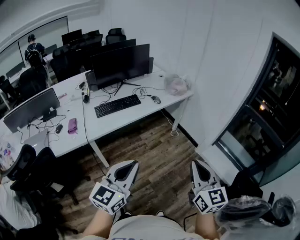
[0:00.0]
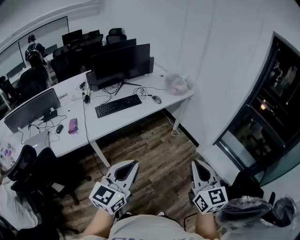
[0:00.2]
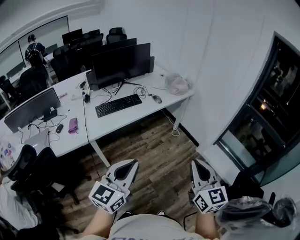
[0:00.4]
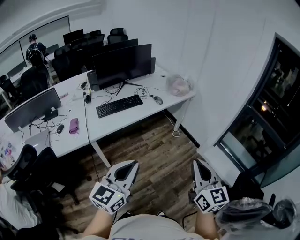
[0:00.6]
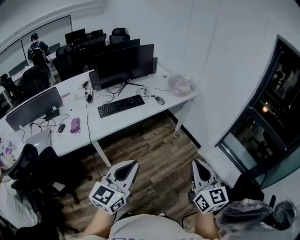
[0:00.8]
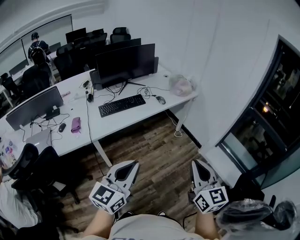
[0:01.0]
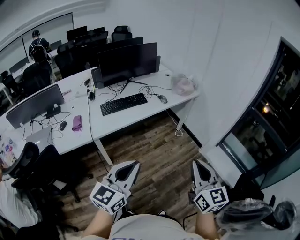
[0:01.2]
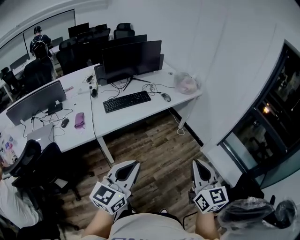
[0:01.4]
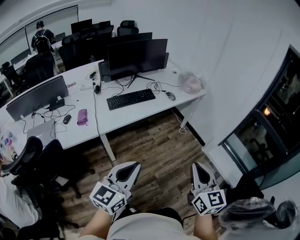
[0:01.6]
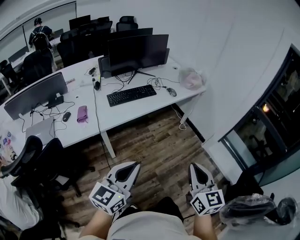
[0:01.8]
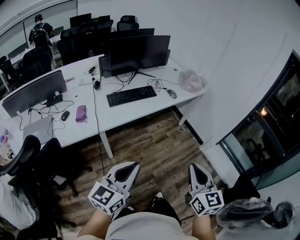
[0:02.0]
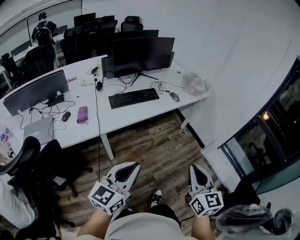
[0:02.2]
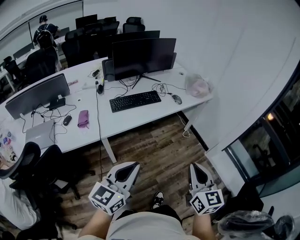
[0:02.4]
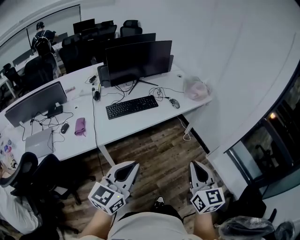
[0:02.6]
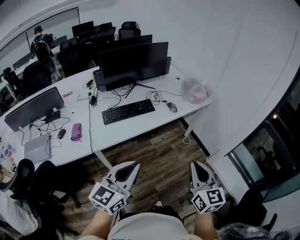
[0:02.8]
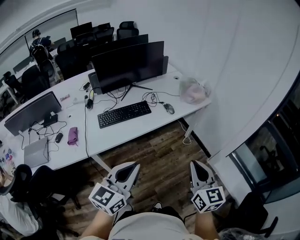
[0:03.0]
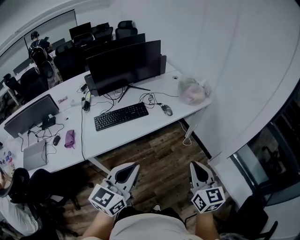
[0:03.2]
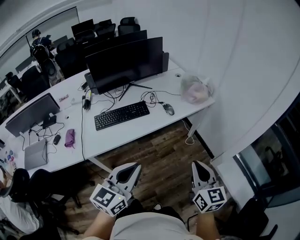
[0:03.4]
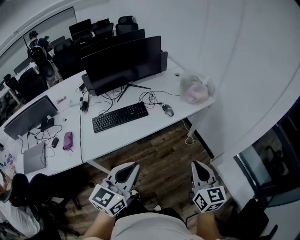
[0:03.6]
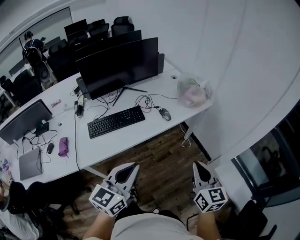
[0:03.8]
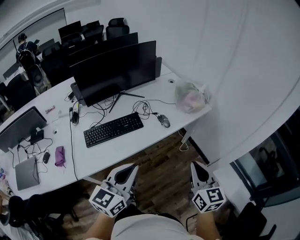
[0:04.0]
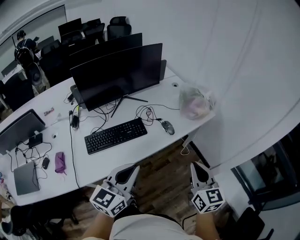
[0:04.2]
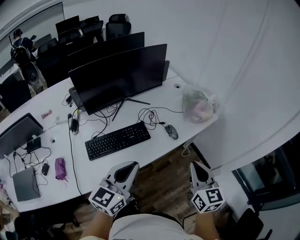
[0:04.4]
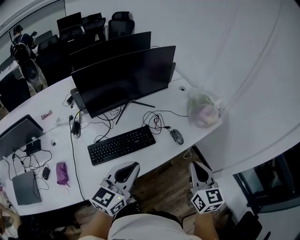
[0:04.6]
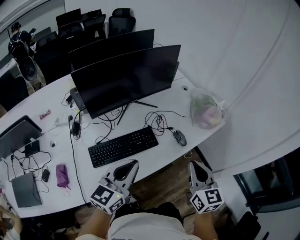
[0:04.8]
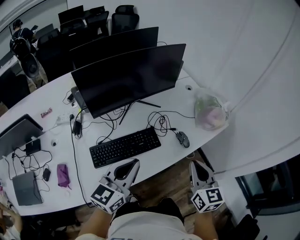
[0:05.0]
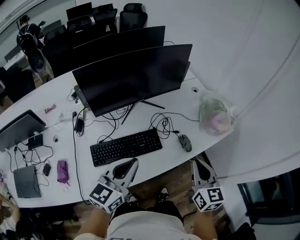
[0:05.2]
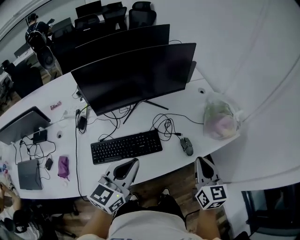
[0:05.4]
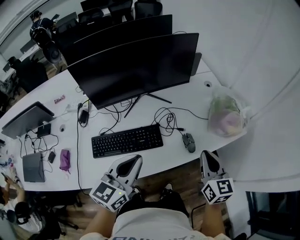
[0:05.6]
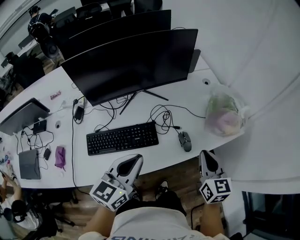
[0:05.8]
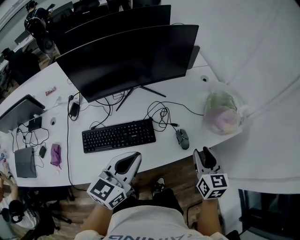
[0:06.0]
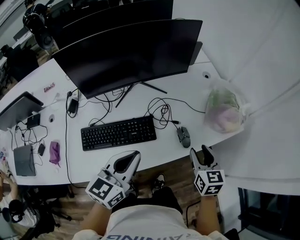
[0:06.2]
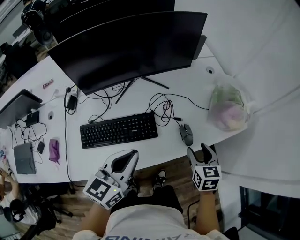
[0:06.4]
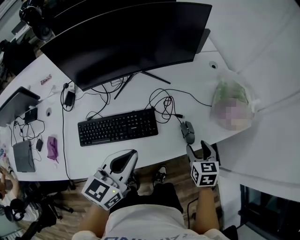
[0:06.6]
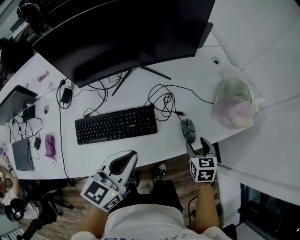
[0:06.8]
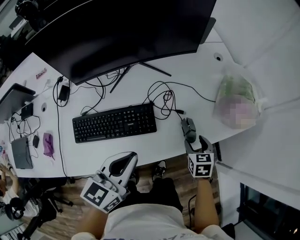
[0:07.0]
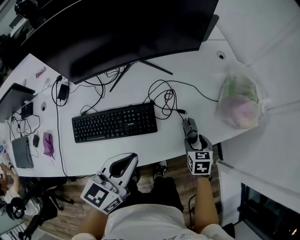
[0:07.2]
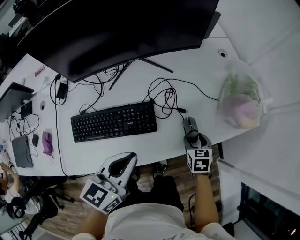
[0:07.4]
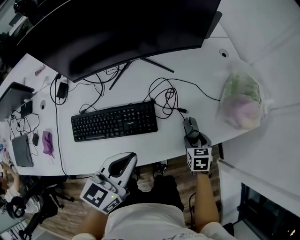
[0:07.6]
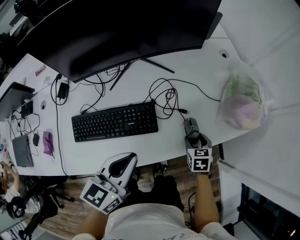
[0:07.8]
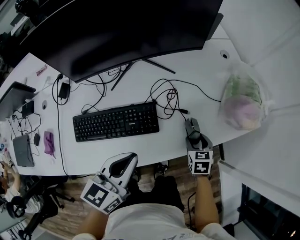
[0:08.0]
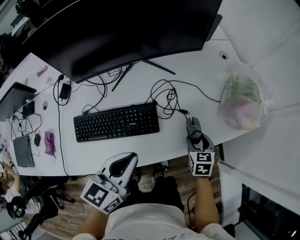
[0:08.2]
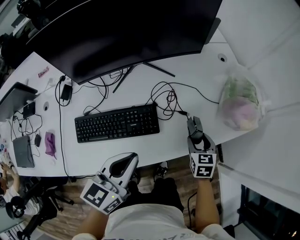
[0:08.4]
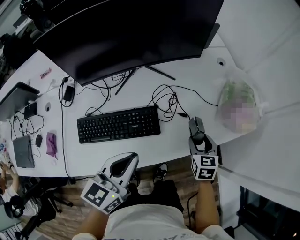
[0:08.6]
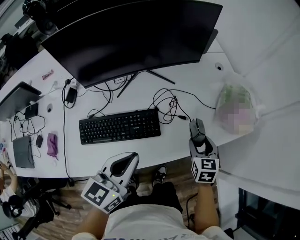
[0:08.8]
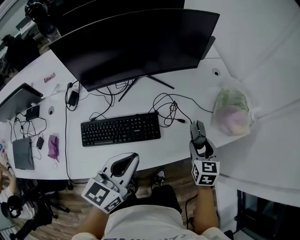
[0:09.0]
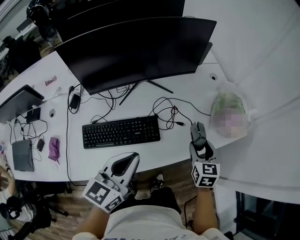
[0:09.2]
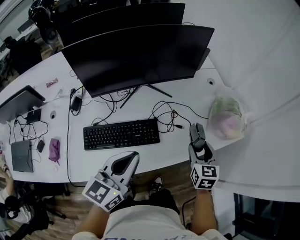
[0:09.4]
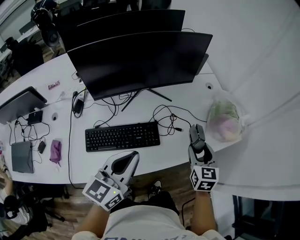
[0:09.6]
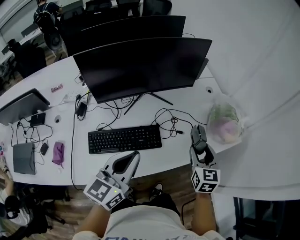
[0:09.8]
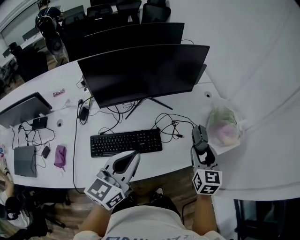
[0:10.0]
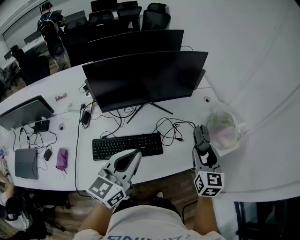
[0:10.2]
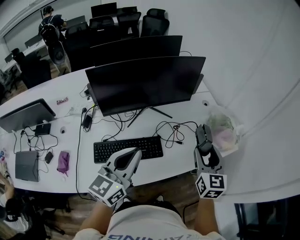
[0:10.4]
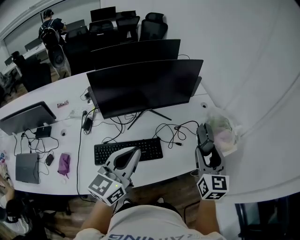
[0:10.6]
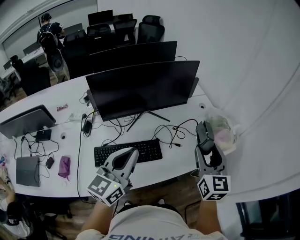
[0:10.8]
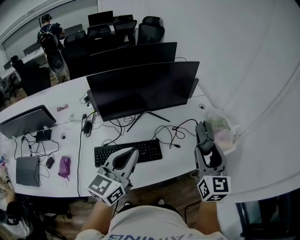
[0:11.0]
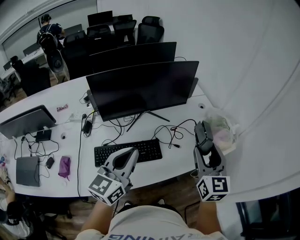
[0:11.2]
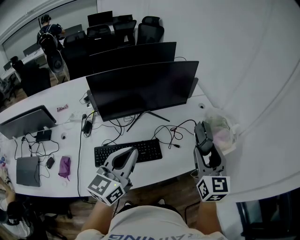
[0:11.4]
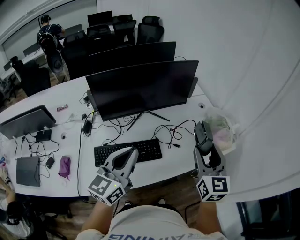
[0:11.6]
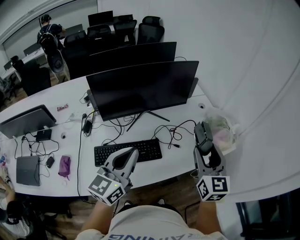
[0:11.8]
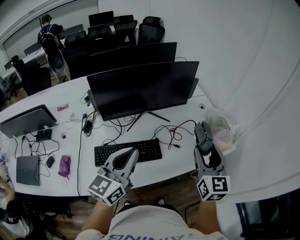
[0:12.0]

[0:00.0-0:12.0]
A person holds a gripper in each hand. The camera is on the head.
0:00.0 to 0:01.6: Both grippers travel together to the left, approximately 10 cm.
0:01.6 to 0:03.0: The two grippers go about 20 cm forward.
0:03.0 to 0:04.4: The two grippers go roughly 25 cm forward.
0:04.4 to 0:06.0: The left gripper moves forward, some 15 cm, while the right gripper is displaced forward and downward by about 25 cm, and opens up.
0:06.0 to 0:07.6: The left gripper shifts approximately 10 cm downward. The right gripper heads downward, covering roughly 25 cm, angles its fingers downward, by approximately 30 degrees, and opens its fingers.
0:07.6 to 0:09.0: The right gripper goes about 15 cm upward, and changes its angle by about 20 degrees; the left gripper travels upward by roughly 5 cm.
0:09.0 to 0:10.4: The right gripper heads upward, covering roughly 20 cm, and changes its angle by about 20 degrees. The left gripper shifts some 10 cm upward.
0:10.4 to 0:12.0: The right gripper moves upward, approximately 5 cm.

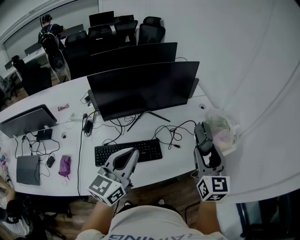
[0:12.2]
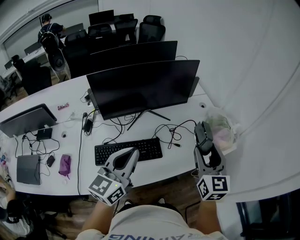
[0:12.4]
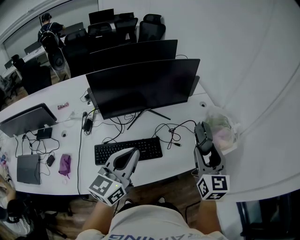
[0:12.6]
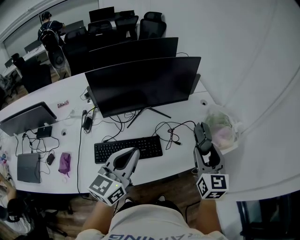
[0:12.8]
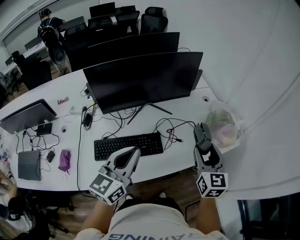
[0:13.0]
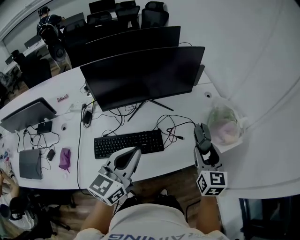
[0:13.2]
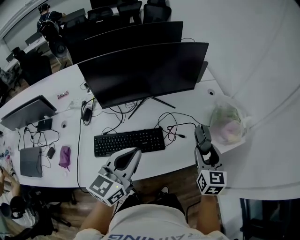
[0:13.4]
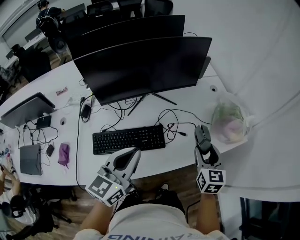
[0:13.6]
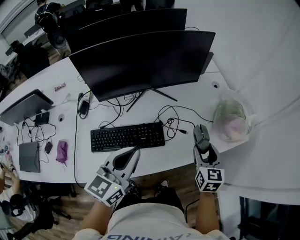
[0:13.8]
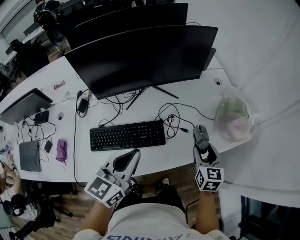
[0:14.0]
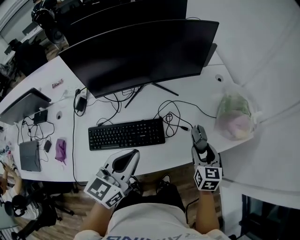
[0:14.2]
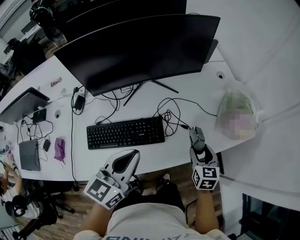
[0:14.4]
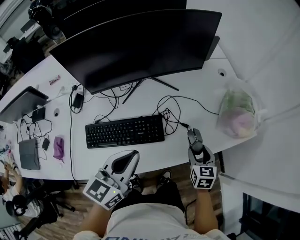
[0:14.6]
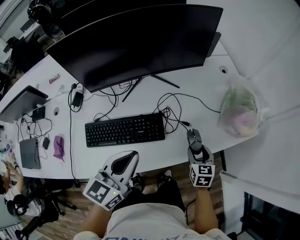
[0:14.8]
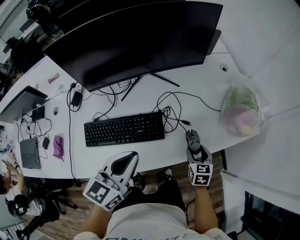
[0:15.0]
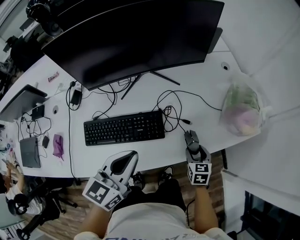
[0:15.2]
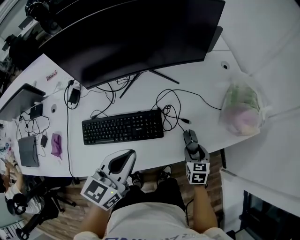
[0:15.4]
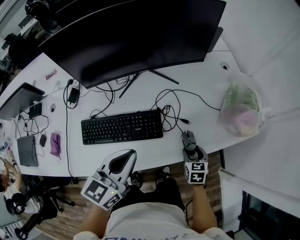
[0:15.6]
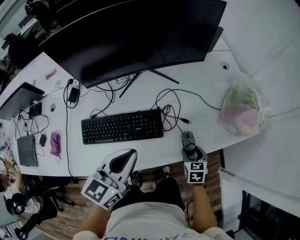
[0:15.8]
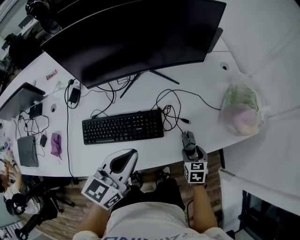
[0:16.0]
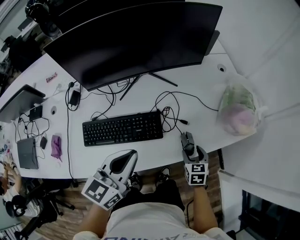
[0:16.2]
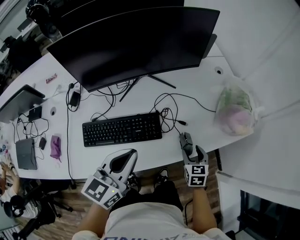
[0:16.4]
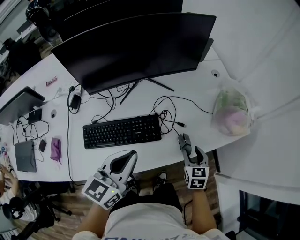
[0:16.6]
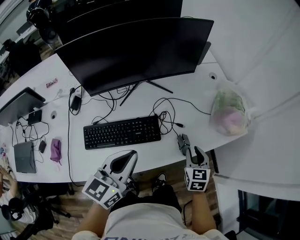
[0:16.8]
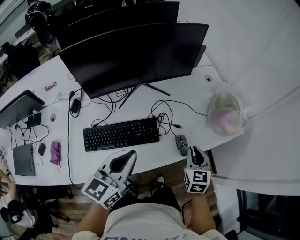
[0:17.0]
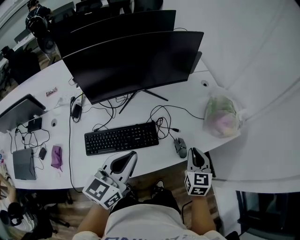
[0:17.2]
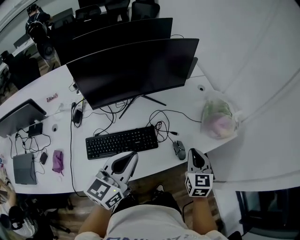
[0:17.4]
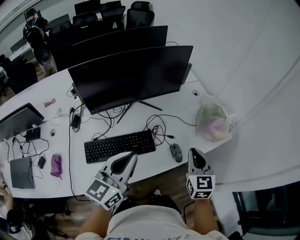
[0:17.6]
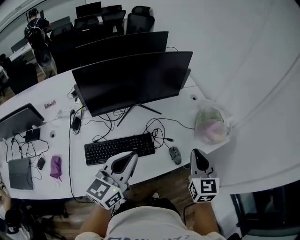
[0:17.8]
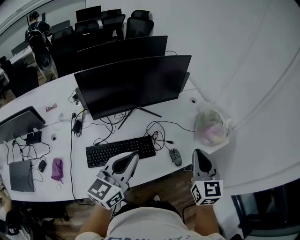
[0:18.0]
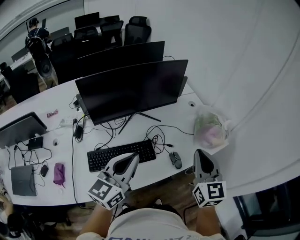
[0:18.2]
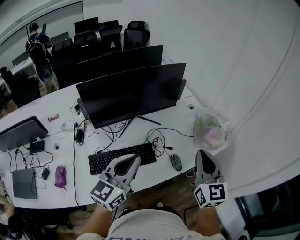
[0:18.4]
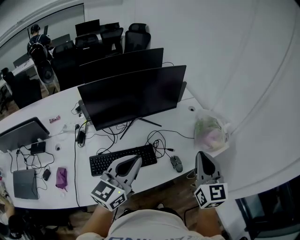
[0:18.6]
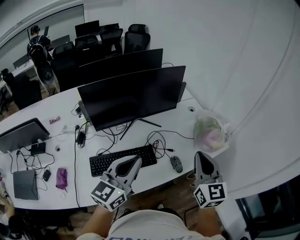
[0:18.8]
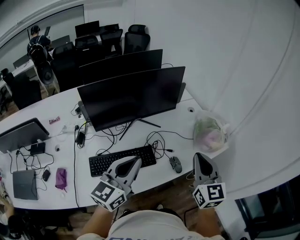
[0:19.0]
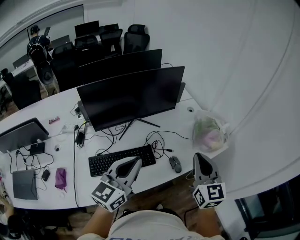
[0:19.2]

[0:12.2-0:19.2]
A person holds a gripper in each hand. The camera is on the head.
0:12.2 to 0:13.6: The right gripper goes roughly 15 cm downward. Meanwhile the left gripper shifts about 5 cm downward.
0:13.6 to 0:15.0: The right gripper is displaced downward by about 20 cm, and changes its angle by roughly 20 degrees. The left gripper travels downward by roughly 10 cm.
0:15.0 to 0:16.4: The grippers stay close to where they were, moving slightly.
0:16.4 to 0:17.8: The left gripper travels upward by about 10 cm, while the right gripper travels upward by approximately 30 cm, swivels about 30 degrees, and closes up.
0:17.8 to 0:19.2: The right gripper moves upward, some 5 cm.

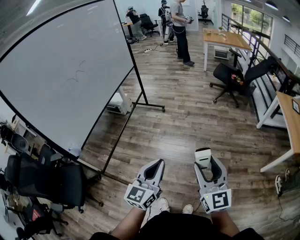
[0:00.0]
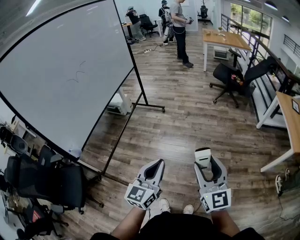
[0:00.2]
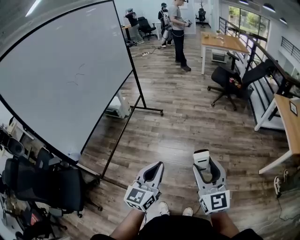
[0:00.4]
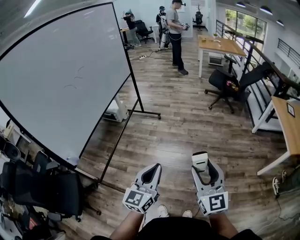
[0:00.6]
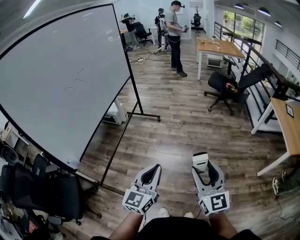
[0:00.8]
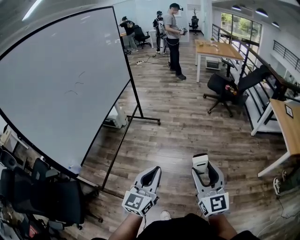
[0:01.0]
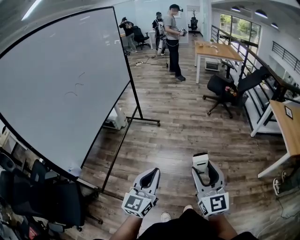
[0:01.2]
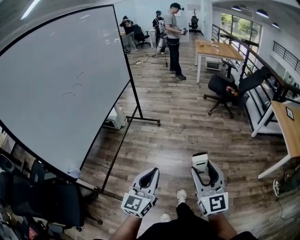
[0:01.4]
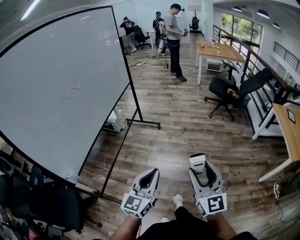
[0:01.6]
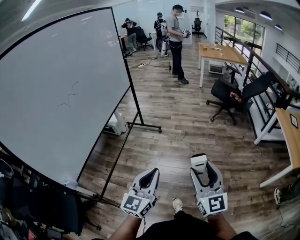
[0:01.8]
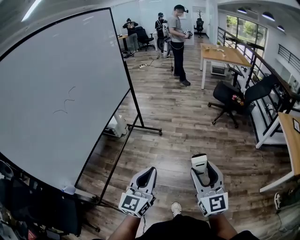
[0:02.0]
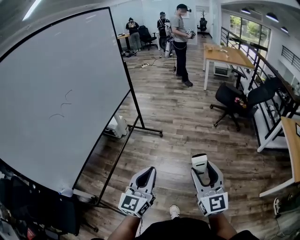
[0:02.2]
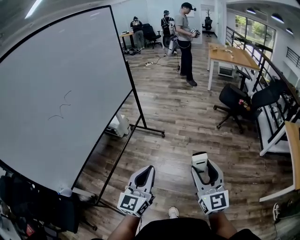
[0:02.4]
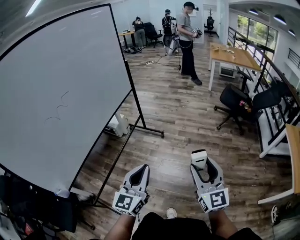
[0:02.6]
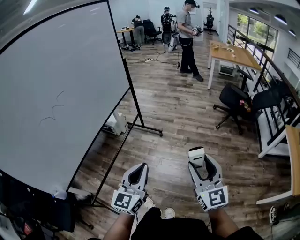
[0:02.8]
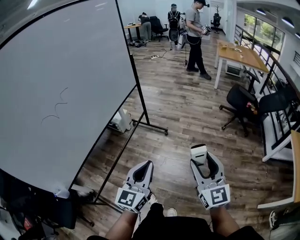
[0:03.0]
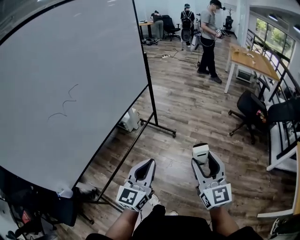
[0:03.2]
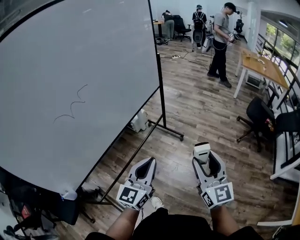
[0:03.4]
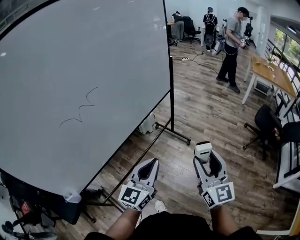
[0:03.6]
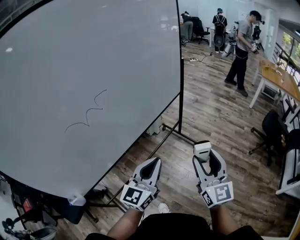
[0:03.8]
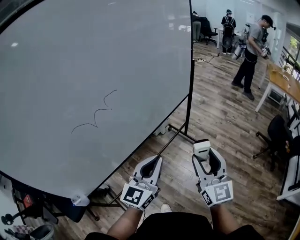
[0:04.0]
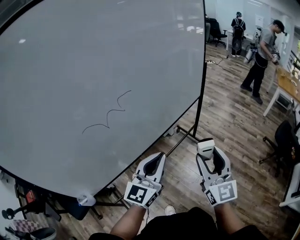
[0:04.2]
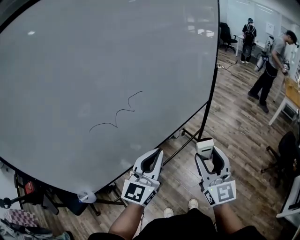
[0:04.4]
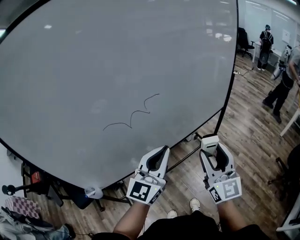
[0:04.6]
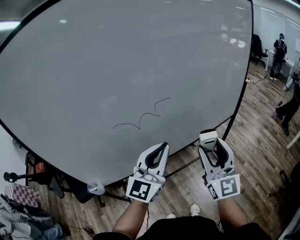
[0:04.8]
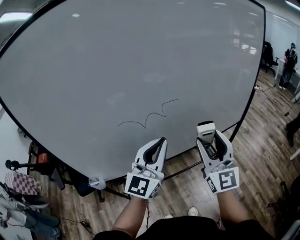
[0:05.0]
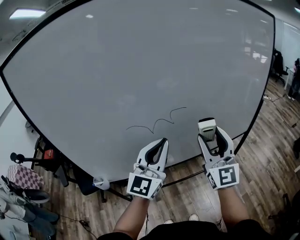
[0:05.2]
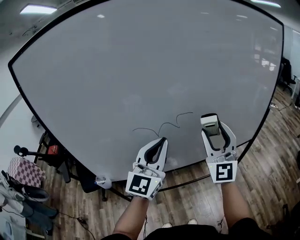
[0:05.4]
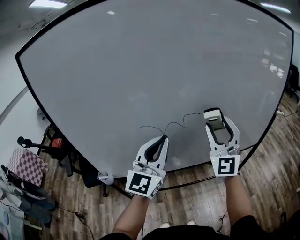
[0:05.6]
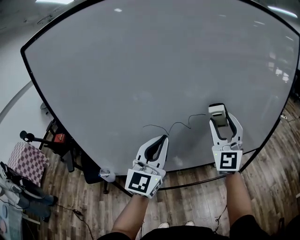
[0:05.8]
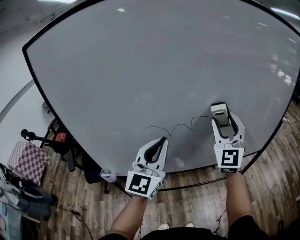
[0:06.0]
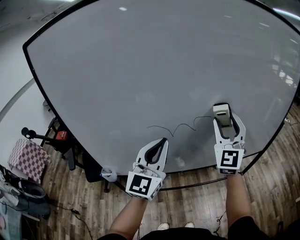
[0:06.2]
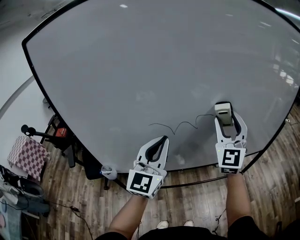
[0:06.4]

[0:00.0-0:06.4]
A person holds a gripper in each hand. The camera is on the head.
0:00.0 to 0:01.6: The two grippers go about 15 cm forward and to the left.
0:01.6 to 0:03.2: Both grippers travel together forward, roughly 35 cm.
0:03.2 to 0:04.8: The left gripper ends up roughly 35 cm from where it was, and swivels roughly 40 degrees; the right gripper moves approximately 40 cm, and changes its angle by about 40 degrees.
0:04.8 to 0:06.4: The right gripper travels forward and upward by roughly 20 cm, and swivels roughly 20 degrees; the left gripper is displaced to the left by approximately 10 cm, and changes its angle by some 30 degrees.
